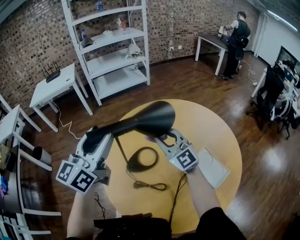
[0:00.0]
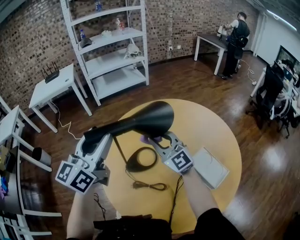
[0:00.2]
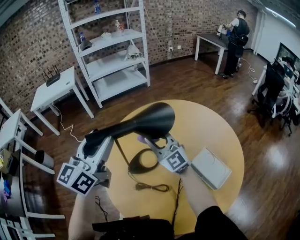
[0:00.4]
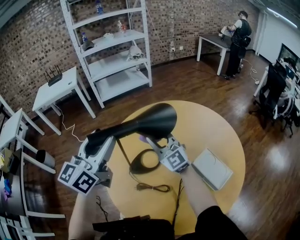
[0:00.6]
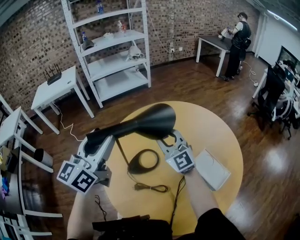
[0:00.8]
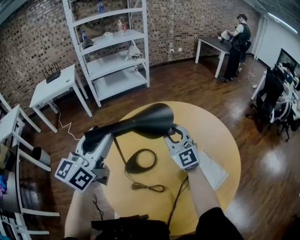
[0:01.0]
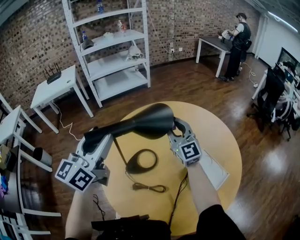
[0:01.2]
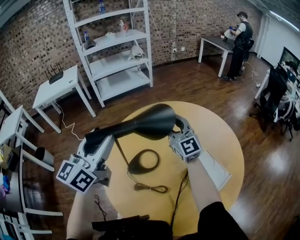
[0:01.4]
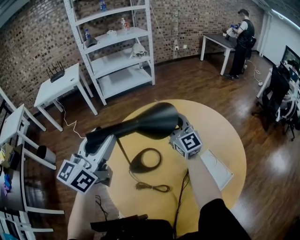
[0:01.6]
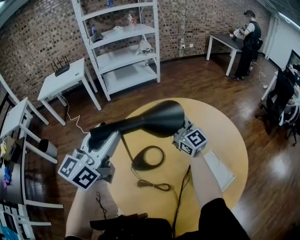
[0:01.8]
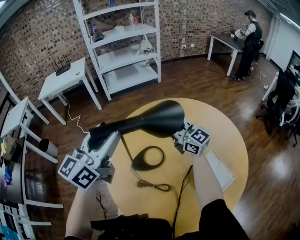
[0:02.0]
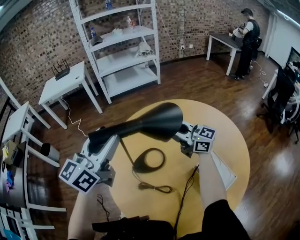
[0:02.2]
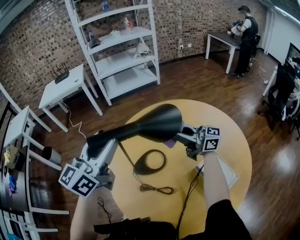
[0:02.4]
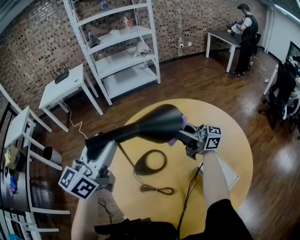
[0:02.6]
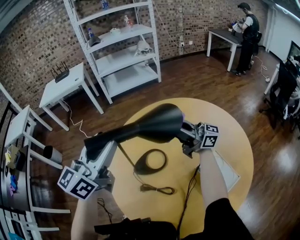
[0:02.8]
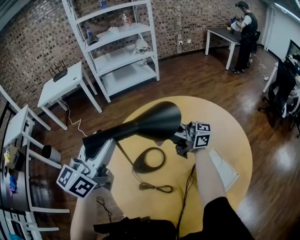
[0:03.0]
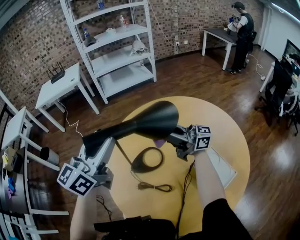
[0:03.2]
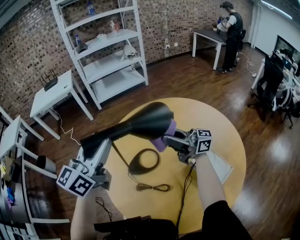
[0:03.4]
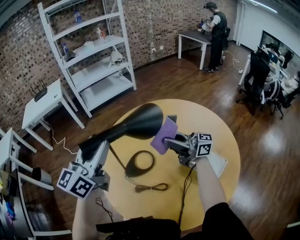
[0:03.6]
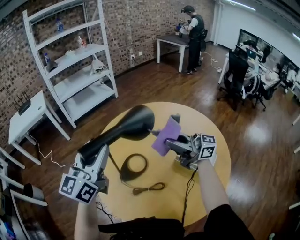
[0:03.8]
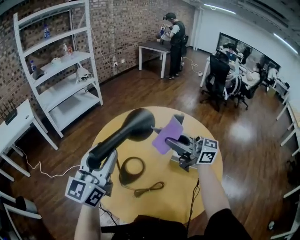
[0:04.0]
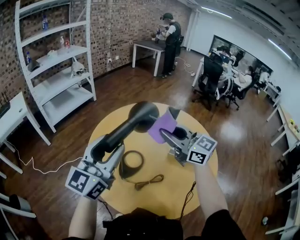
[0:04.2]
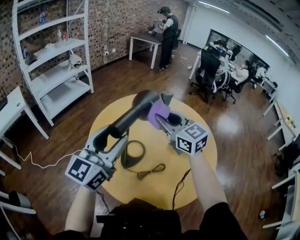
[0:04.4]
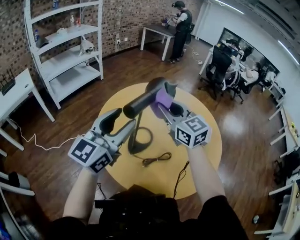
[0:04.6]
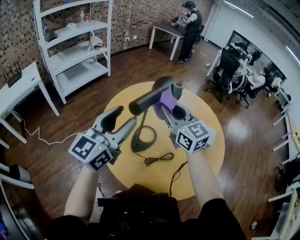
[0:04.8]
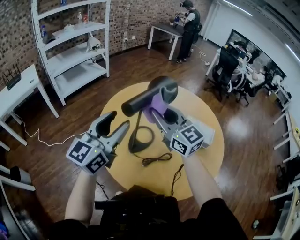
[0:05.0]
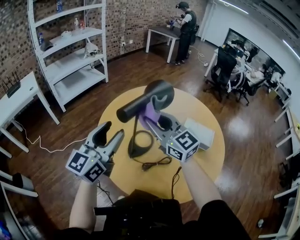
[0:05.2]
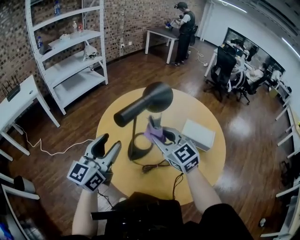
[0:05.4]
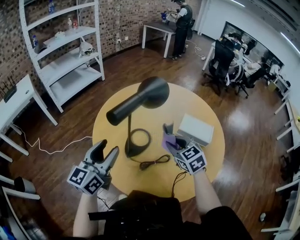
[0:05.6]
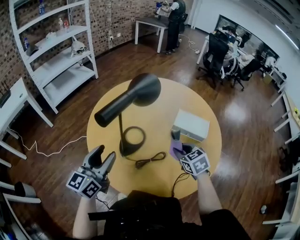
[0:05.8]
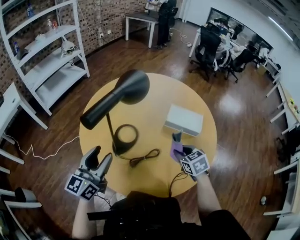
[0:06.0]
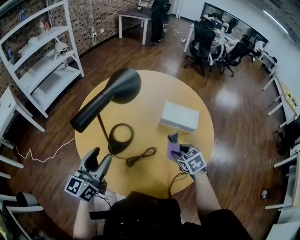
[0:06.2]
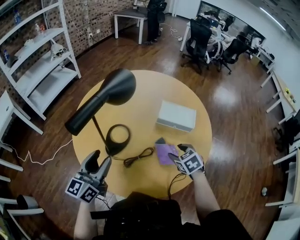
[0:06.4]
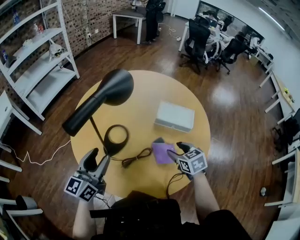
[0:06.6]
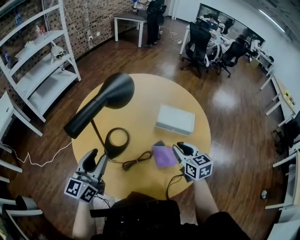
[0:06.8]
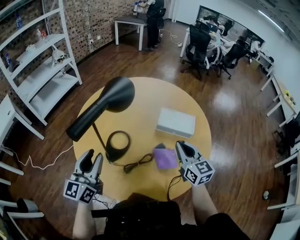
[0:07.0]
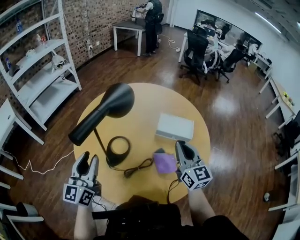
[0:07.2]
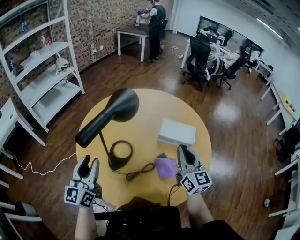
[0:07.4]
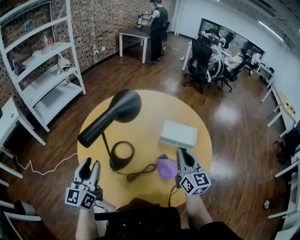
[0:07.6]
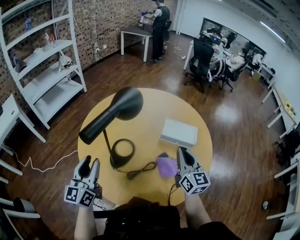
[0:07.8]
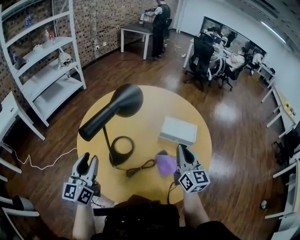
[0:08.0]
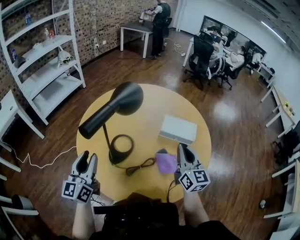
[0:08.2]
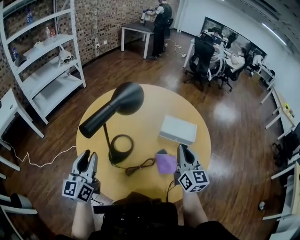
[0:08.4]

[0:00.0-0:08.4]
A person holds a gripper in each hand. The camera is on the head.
0:00.0 to 0:01.4: The right gripper goes some 5 cm forward.
0:01.4 to 0:02.8: The right gripper rotates roughly 70 degrees.
0:02.8 to 0:04.2: The right gripper moves roughly 15 cm, and swivels roughly 60 degrees. Meanwhile the left gripper turns by some 30 degrees.
0:04.2 to 0:05.6: The right gripper shifts about 20 cm downward, and points its fingers about 40 degrees further downward; the left gripper travels downward by approximately 10 cm.
0:05.6 to 0:07.0: The right gripper heads to the right, covering some 15 cm, reaches roughly 10 cm downward, then returns, changes its angle by about 30 degrees, and closes up.
0:07.0 to 0:08.4: The grippers move only a little.

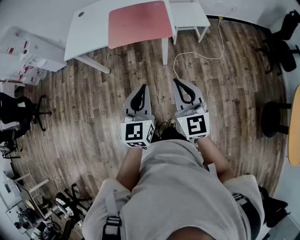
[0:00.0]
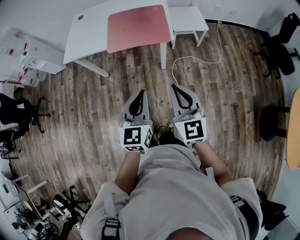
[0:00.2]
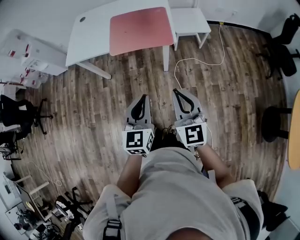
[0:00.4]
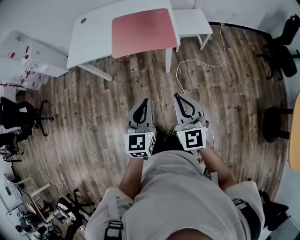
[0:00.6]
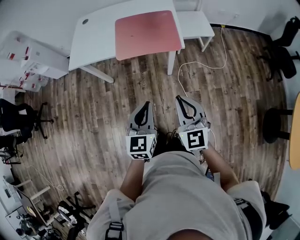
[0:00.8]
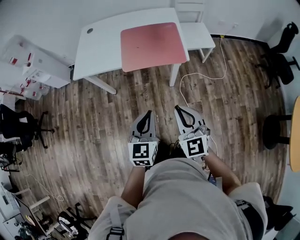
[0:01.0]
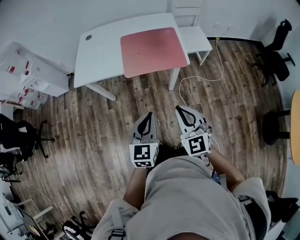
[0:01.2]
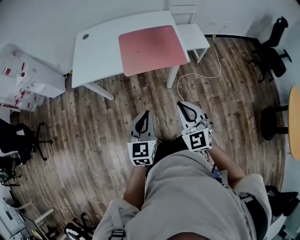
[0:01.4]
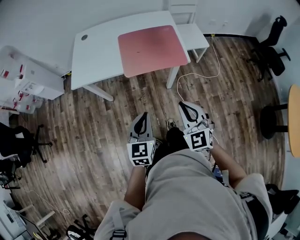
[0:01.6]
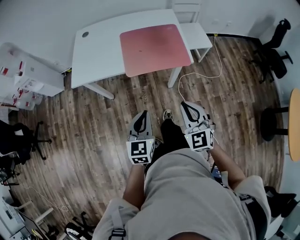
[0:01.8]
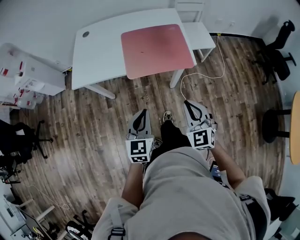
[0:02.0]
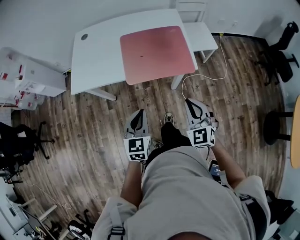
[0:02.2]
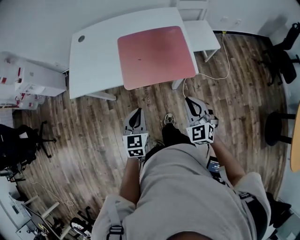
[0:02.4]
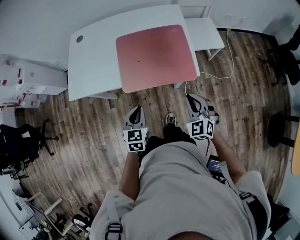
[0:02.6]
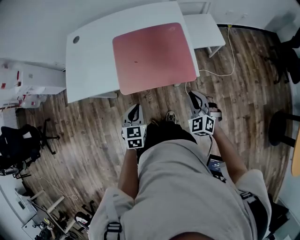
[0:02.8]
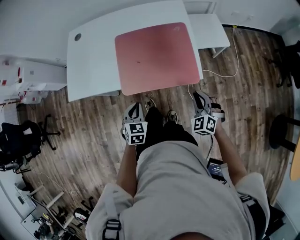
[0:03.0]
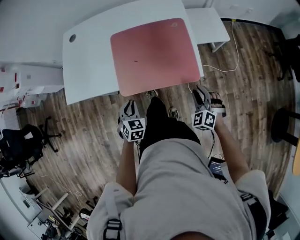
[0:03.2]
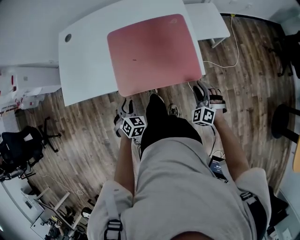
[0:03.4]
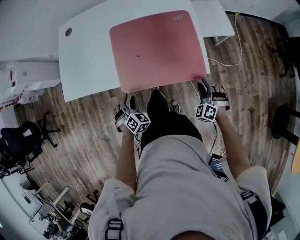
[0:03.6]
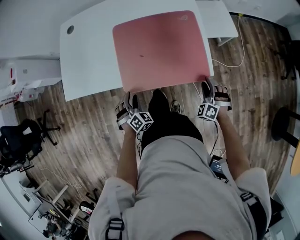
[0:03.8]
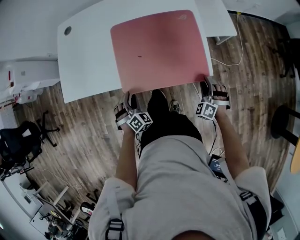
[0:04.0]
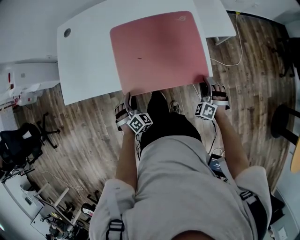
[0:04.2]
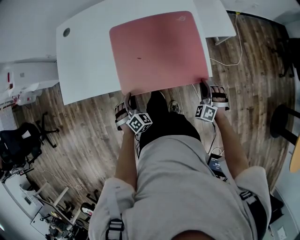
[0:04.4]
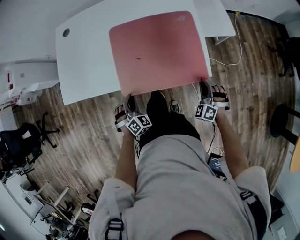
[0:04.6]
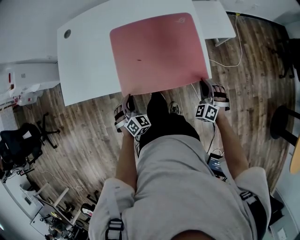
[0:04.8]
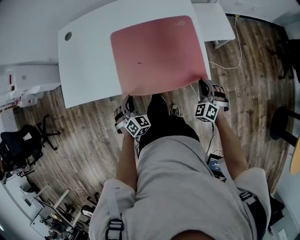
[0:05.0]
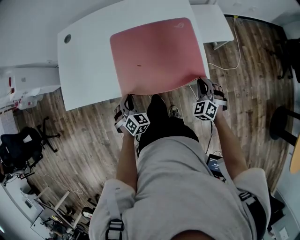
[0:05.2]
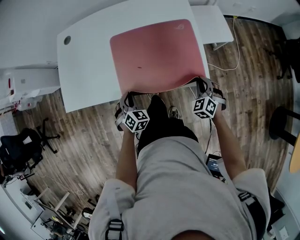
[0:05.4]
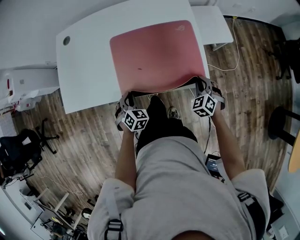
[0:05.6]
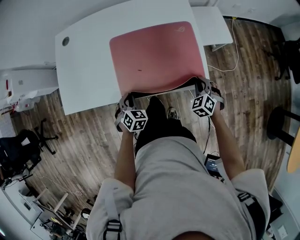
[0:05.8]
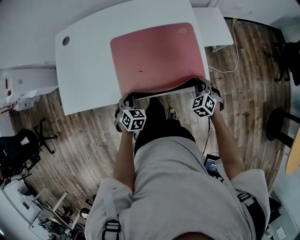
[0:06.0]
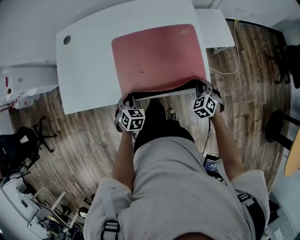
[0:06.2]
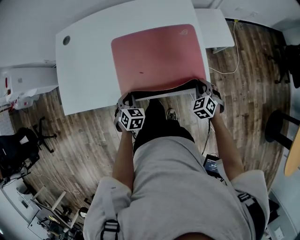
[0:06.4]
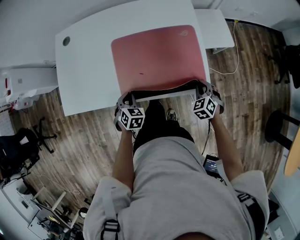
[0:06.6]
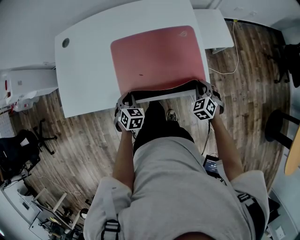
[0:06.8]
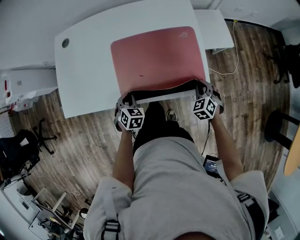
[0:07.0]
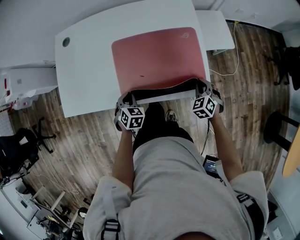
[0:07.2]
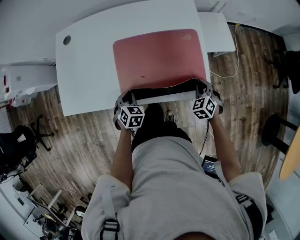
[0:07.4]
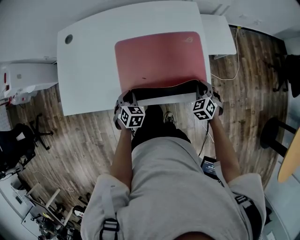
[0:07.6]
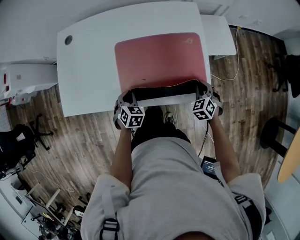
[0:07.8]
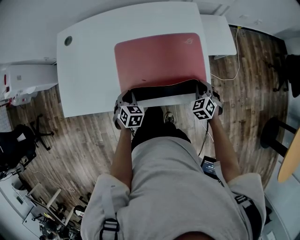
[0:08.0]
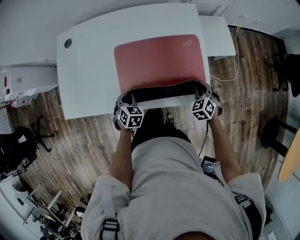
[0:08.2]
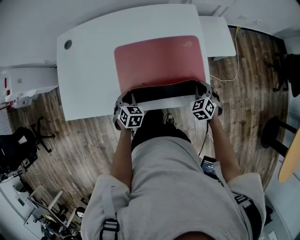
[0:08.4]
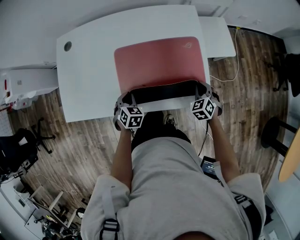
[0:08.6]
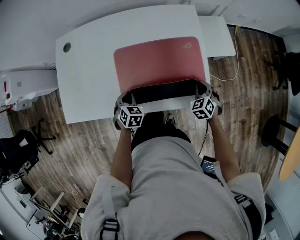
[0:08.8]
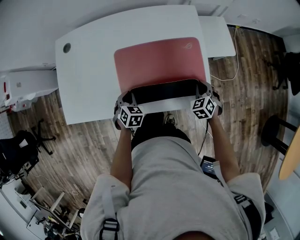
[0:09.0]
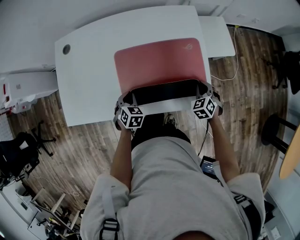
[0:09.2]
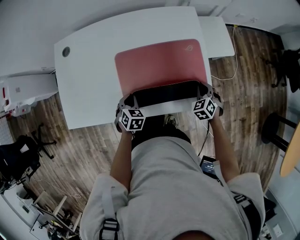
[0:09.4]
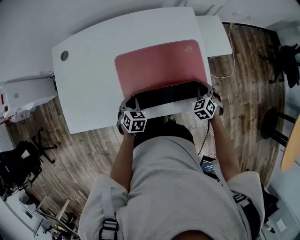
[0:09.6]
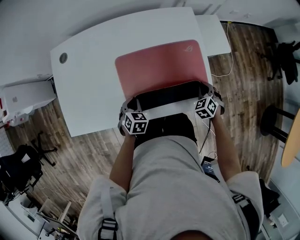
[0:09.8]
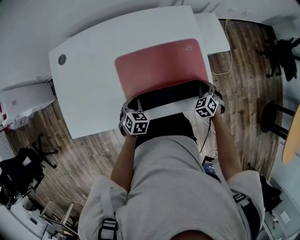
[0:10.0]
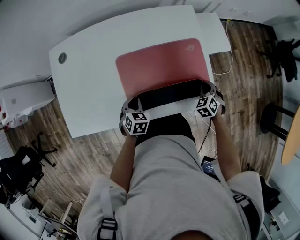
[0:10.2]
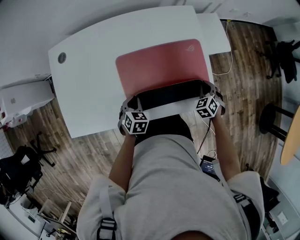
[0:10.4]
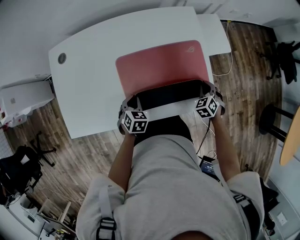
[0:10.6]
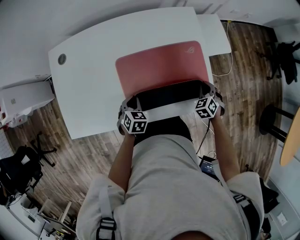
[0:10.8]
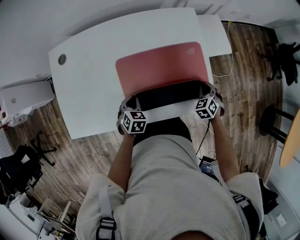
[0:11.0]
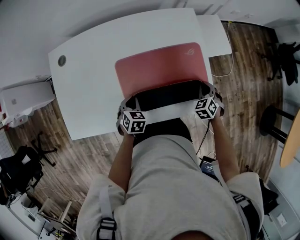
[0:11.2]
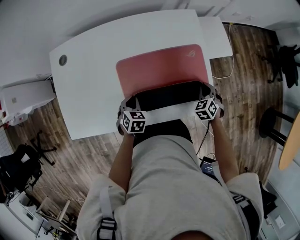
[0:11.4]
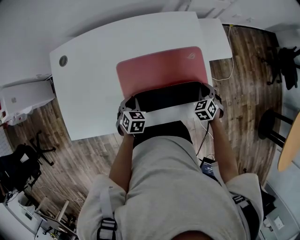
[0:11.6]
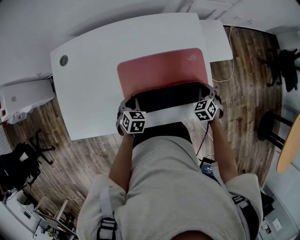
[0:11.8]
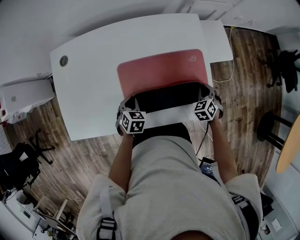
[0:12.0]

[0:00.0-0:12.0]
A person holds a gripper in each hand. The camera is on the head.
0:00.0 to 0:01.6: The grippers both shift to the left and forward by some 20 cm. The right gripper rotates about 20 degrees.
0:01.6 to 0:03.0: The left gripper shifts about 30 cm forward and downward, and changes its angle by roughly 30 degrees, while the right gripper moves forward, downward and to the right, about 35 cm, and swivels approximately 20 degrees.
0:03.0 to 0:04.4: The left gripper goes roughly 15 cm downward, forward and to the left, and rotates roughly 40 degrees, while the right gripper heads downward and forward, covering some 10 cm, swivels approximately 20 degrees, and opens, then closes again.
0:04.4 to 0:06.0: The grippers both shift forward by roughly 5 cm. The right gripper turns by roughly 30 degrees. The left gripper changes its angle by approximately 30 degrees.
0:06.0 to 0:07.6: The grippers make only small movements.
0:07.6 to 0:10.4: The grippers make only small movements.
0:10.4 to 0:12.0: The grippers move only a little.

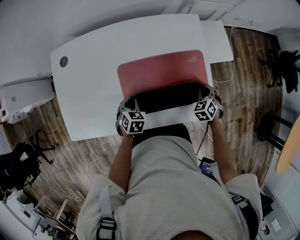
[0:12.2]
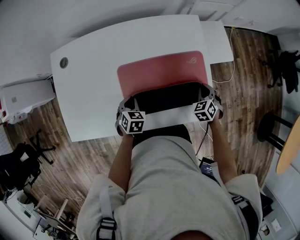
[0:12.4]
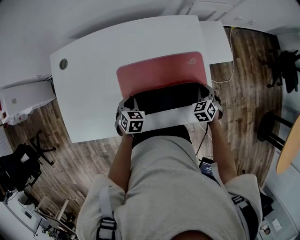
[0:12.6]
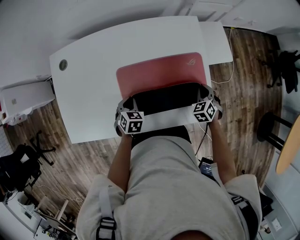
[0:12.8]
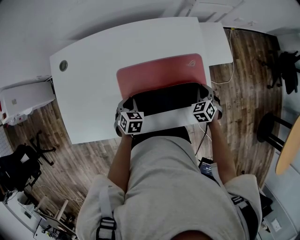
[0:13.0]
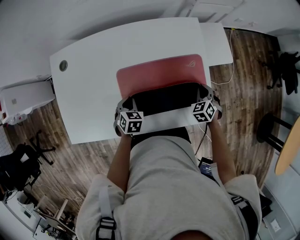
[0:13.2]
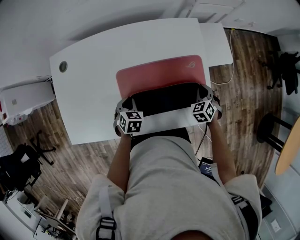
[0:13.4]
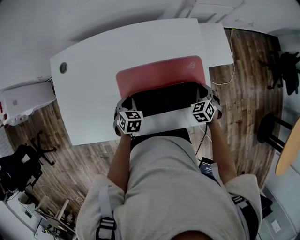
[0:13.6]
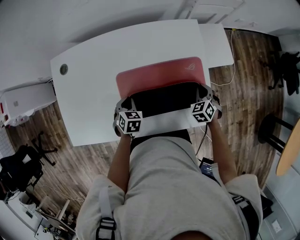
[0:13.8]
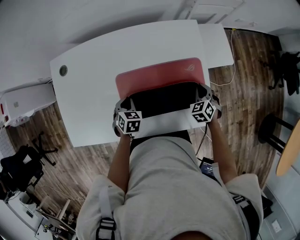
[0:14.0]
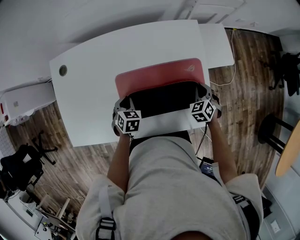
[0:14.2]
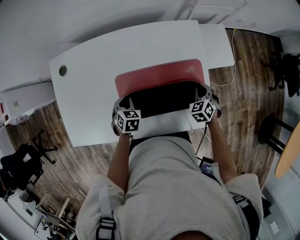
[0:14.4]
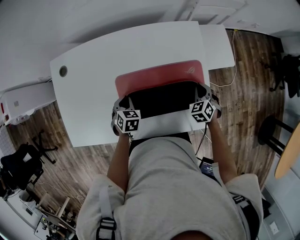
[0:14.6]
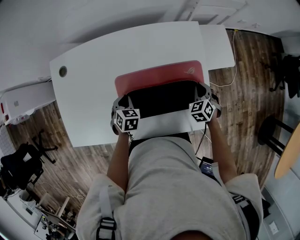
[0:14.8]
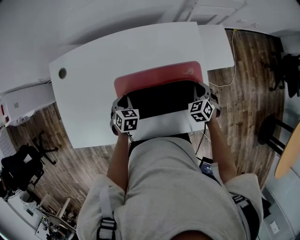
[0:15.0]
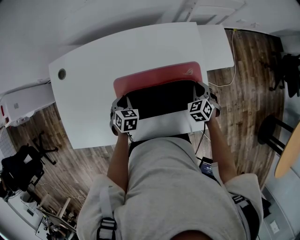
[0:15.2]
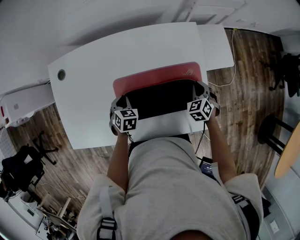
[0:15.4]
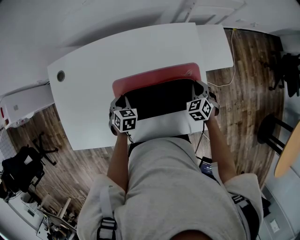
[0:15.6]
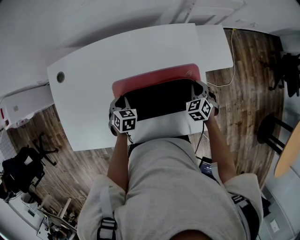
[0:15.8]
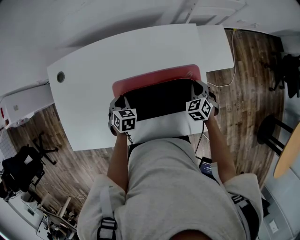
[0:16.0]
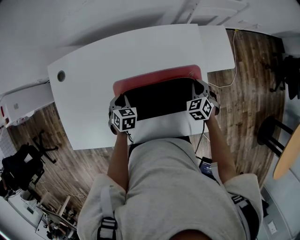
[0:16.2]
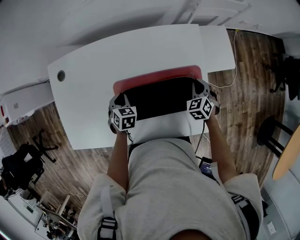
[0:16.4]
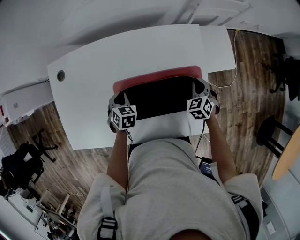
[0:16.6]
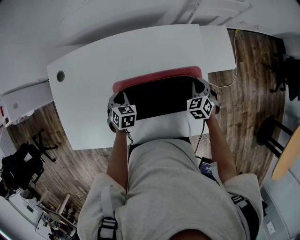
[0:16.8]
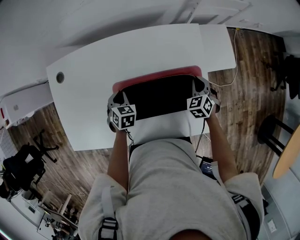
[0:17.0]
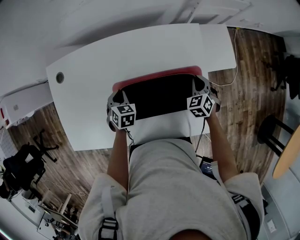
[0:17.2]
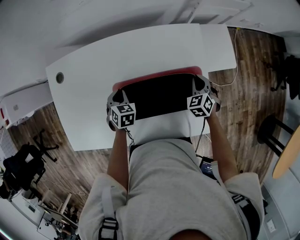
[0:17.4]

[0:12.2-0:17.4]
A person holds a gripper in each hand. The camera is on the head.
0:12.2 to 0:14.0: The grippers stay close to where they were, moving slightly.
0:14.0 to 0:15.6: The grippers make only small movements.
0:15.6 to 0:17.4: The left gripper ends up approximately 5 cm from where it was.
